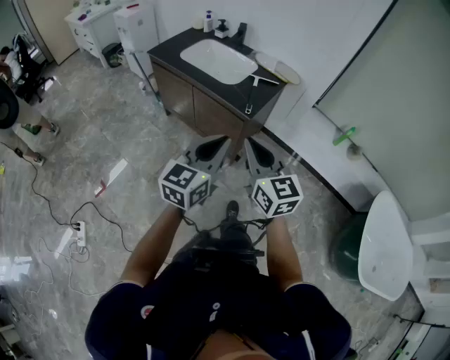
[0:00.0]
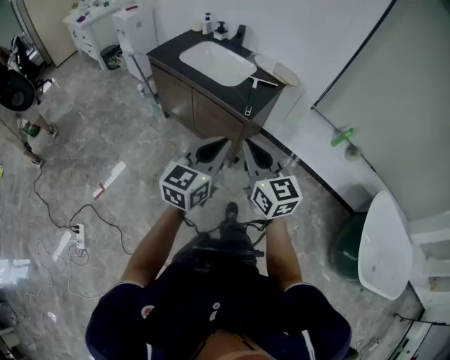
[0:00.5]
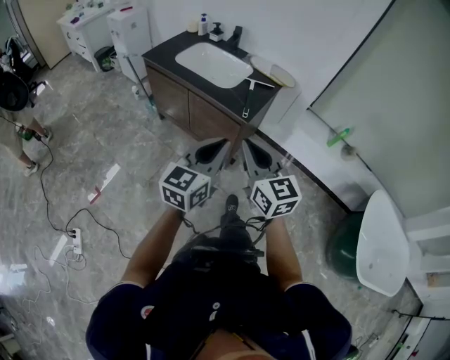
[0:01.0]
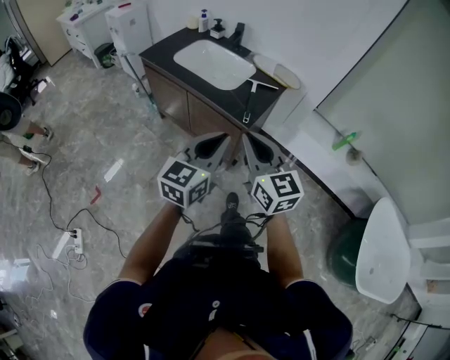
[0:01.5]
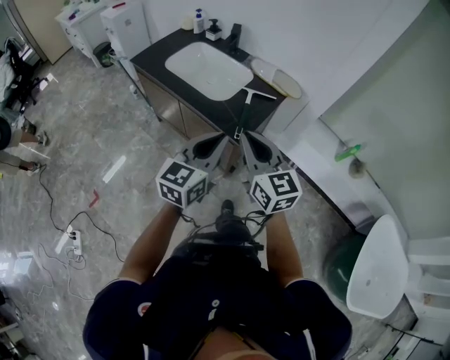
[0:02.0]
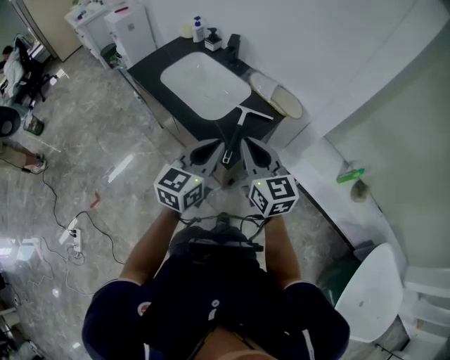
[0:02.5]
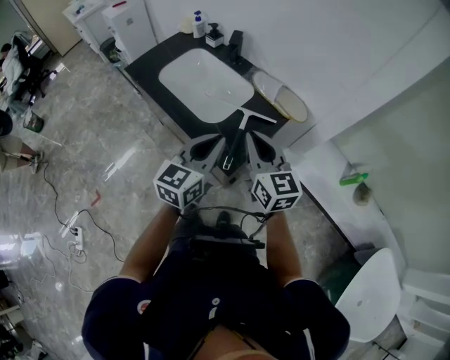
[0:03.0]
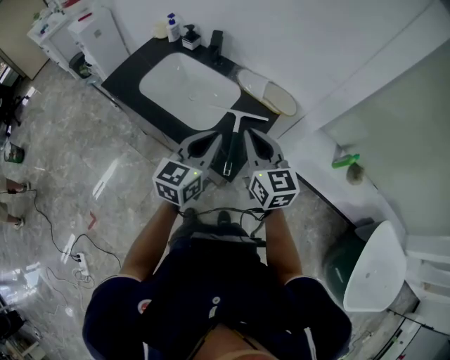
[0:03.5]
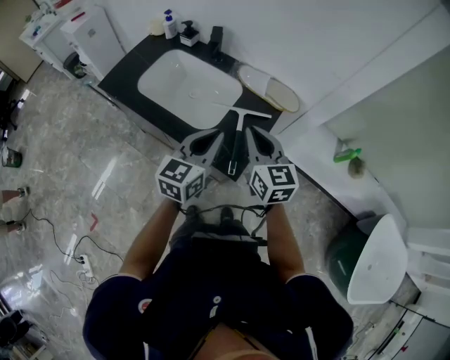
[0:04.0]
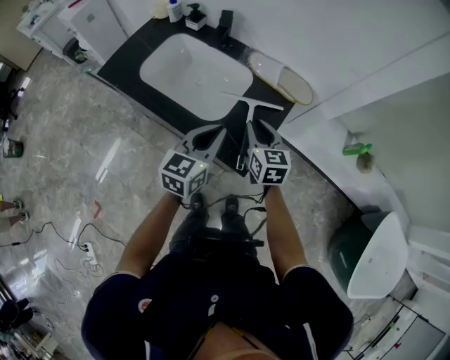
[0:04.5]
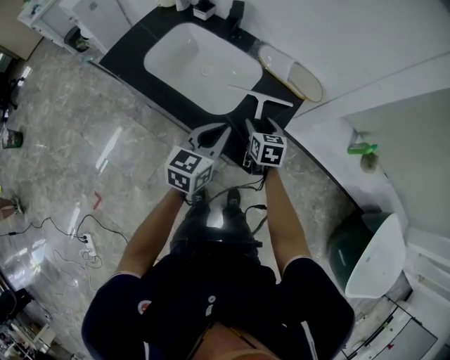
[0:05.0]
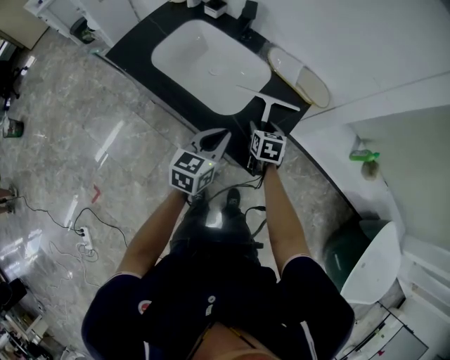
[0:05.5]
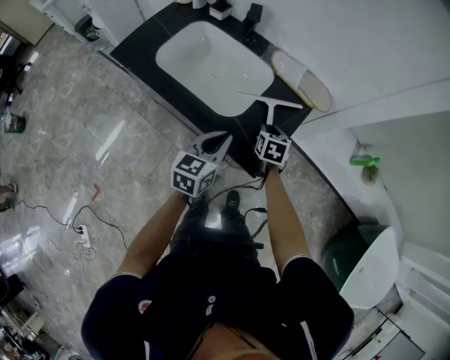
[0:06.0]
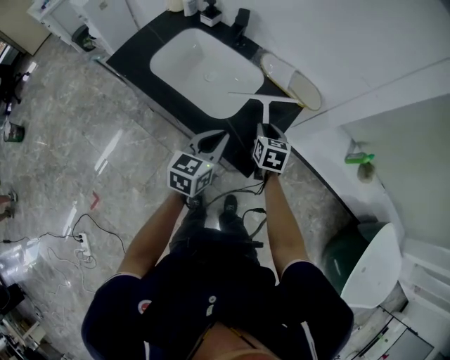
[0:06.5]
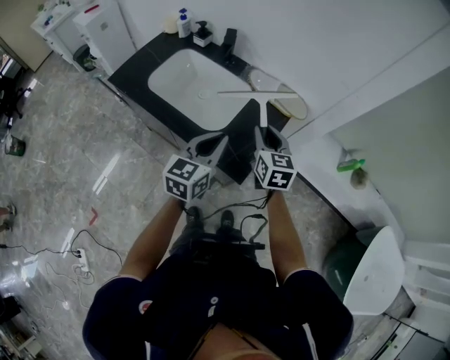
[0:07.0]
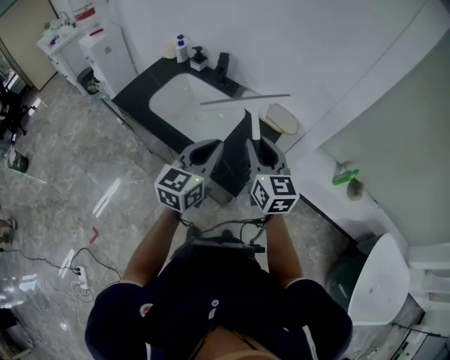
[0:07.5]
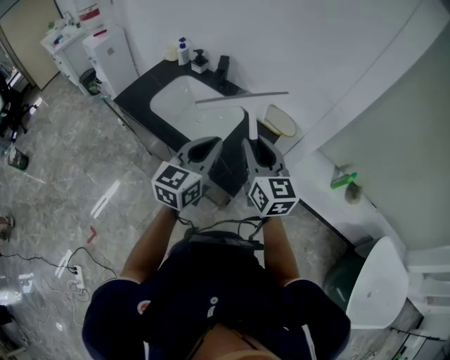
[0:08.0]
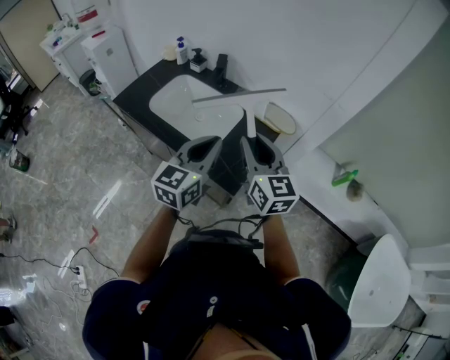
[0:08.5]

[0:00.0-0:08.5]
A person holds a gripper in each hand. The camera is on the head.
0:00.0 to 0:02.0: The two grippers go approximately 20 cm forward.
0:02.0 to 0:04.0: The grippers both shift forward by approximately 25 cm.
0:04.0 to 0:06.5: The right gripper is displaced downward by approximately 20 cm, swivels some 30 degrees, and opens up. The left gripper travels downward by about 10 cm.
0:06.5 to 0:08.5: The left gripper travels upward by some 15 cm. Meanwhile the right gripper heads upward, covering some 25 cm, and points its fingers about 40 degrees further upward.

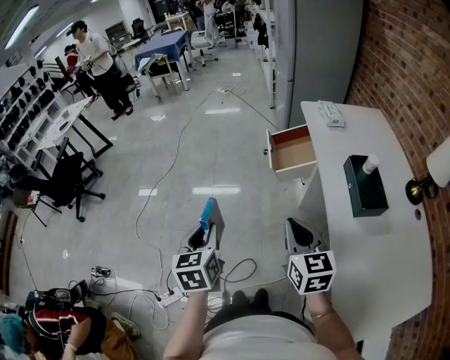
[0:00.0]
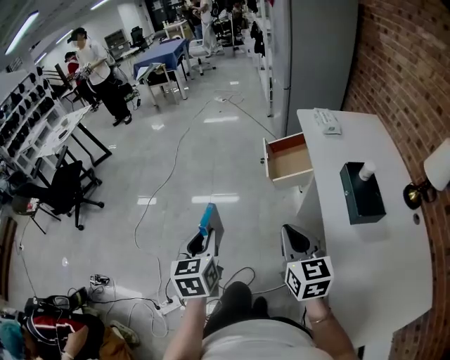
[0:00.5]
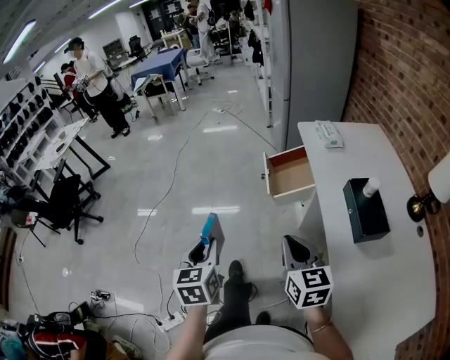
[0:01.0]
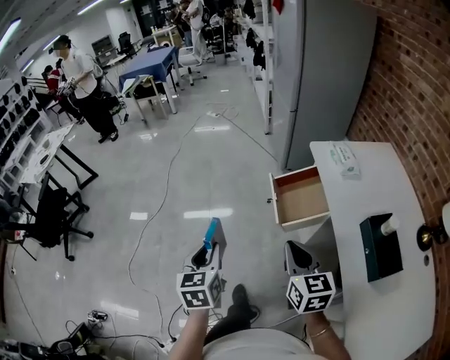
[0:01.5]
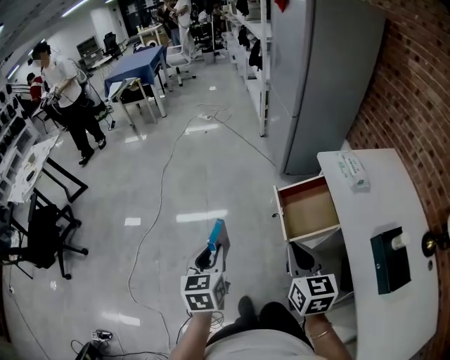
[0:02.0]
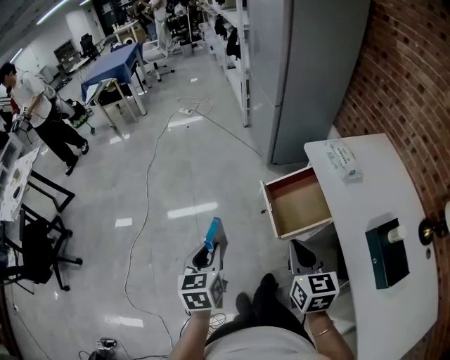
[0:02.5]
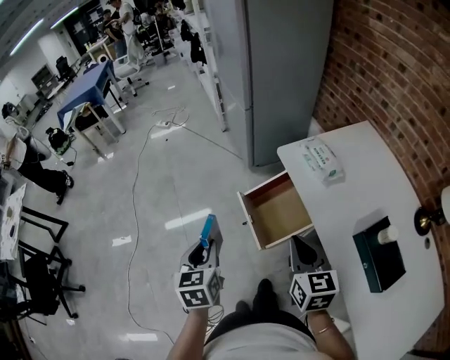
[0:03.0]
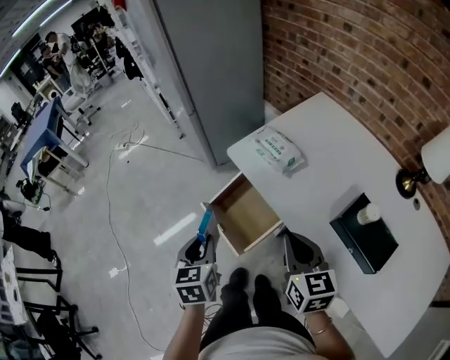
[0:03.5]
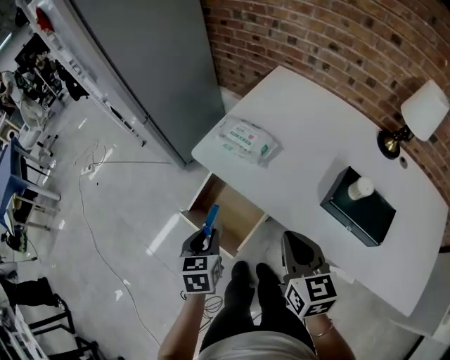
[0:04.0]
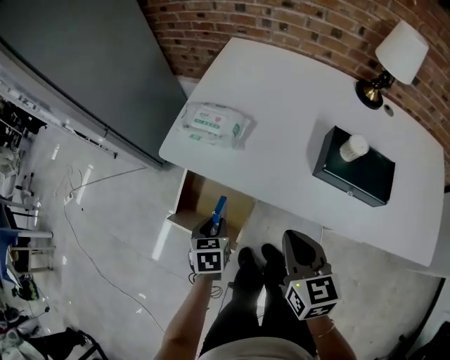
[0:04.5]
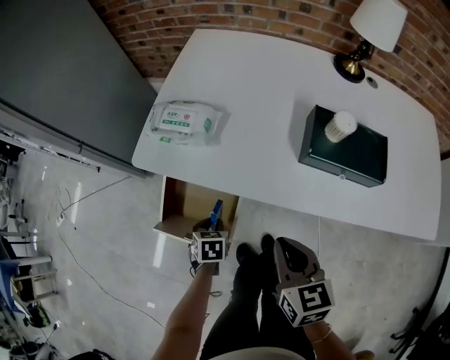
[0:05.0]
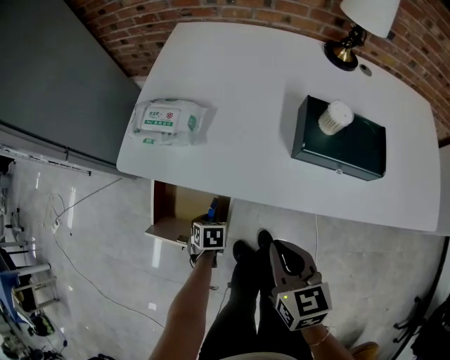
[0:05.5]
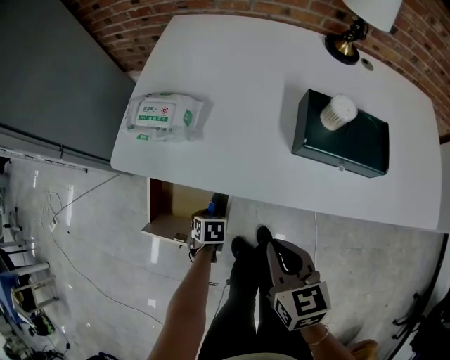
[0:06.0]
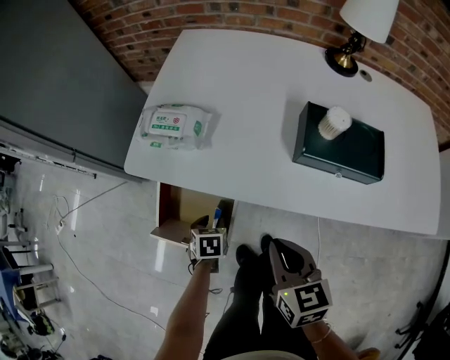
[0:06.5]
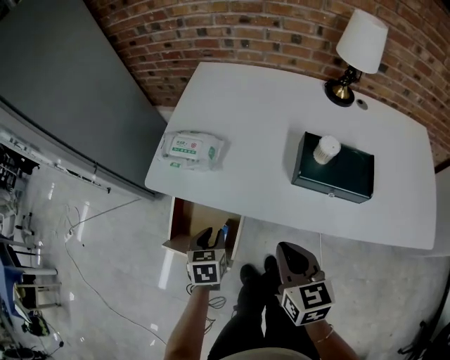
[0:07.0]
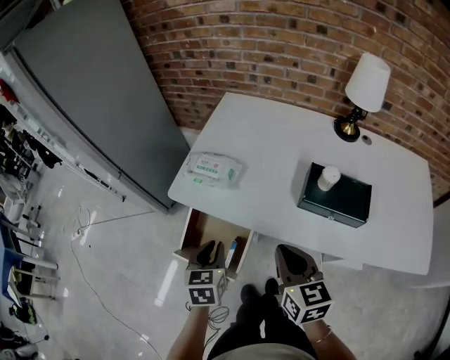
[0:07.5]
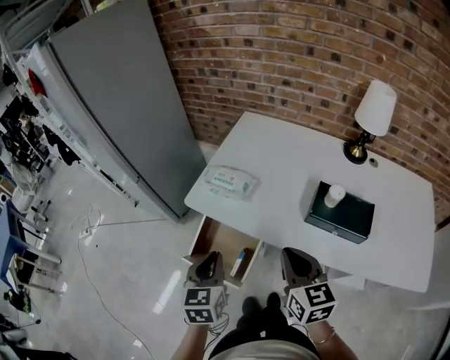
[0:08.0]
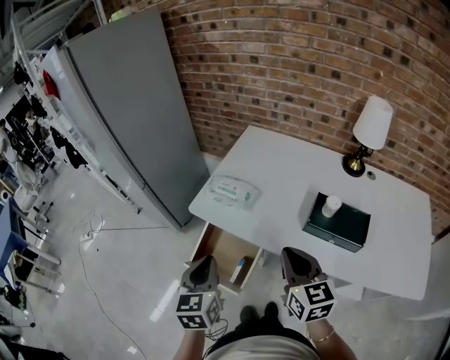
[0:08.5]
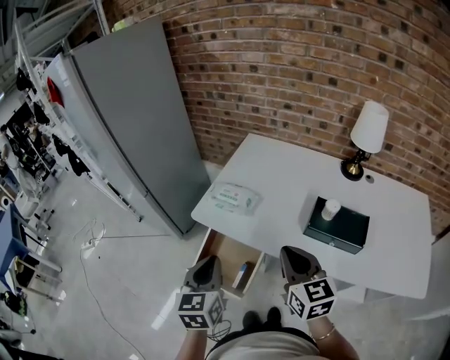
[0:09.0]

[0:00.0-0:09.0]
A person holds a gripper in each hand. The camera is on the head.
0:00.0 to 0:02.0: The grippers both shift forward by roughly 40 cm.
0:02.0 to 0:04.5: The right gripper moves approximately 30 cm, and rotates roughly 60 degrees; the left gripper shifts by some 50 cm, and swivels about 70 degrees.
0:04.5 to 0:07.0: The right gripper moves about 10 cm downward and comes back. Meanwhile the left gripper goes downward and returns, some 20 cm each way.
0:07.0 to 0:09.0: The right gripper is displaced upward by roughly 15 cm, and changes its angle by roughly 20 degrees; the left gripper moves upward, some 30 cm, points its fingers about 30 degrees further upward, and closes up.

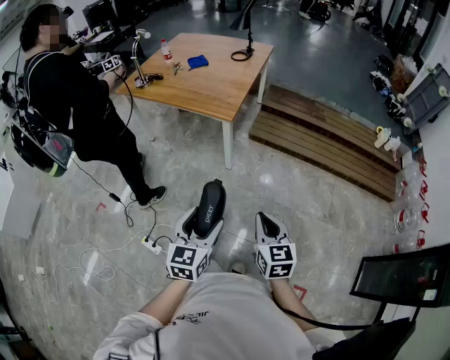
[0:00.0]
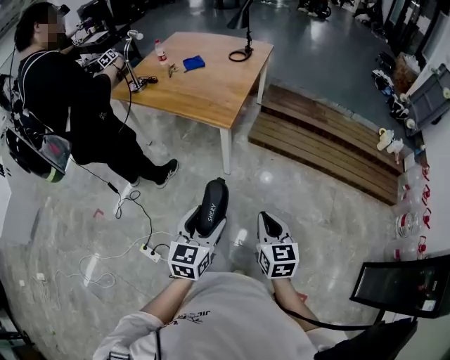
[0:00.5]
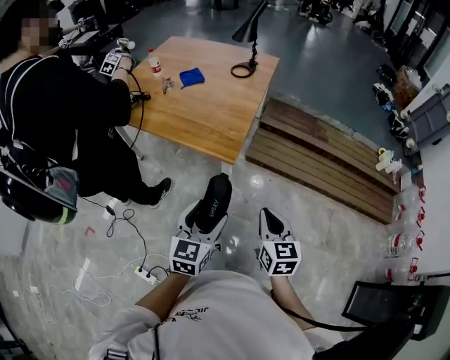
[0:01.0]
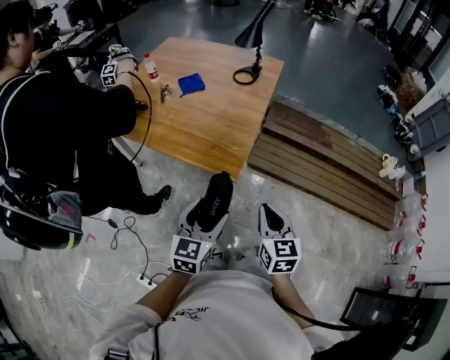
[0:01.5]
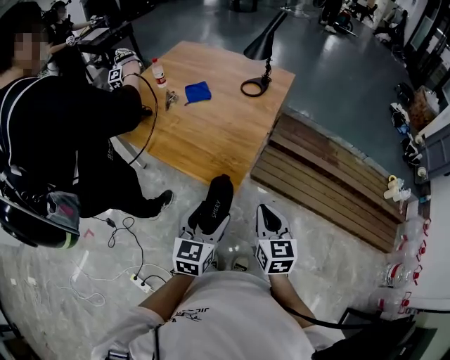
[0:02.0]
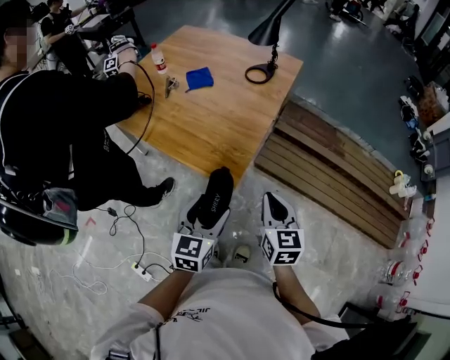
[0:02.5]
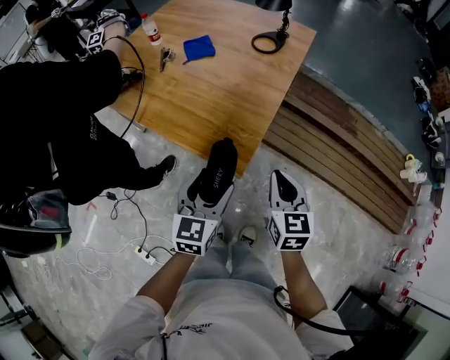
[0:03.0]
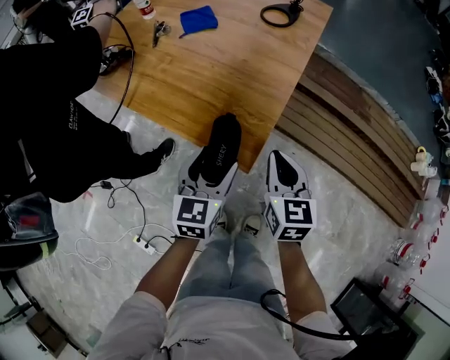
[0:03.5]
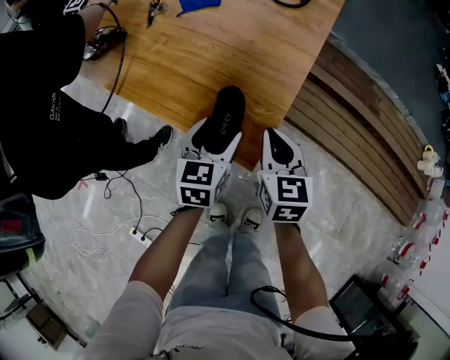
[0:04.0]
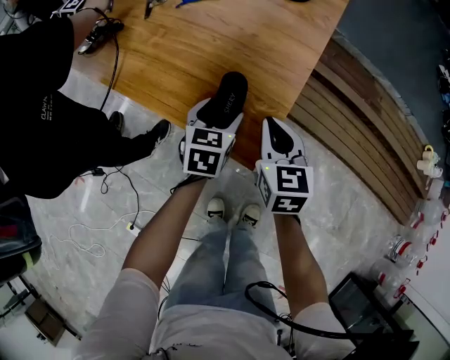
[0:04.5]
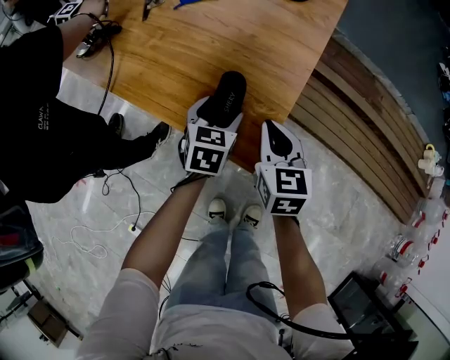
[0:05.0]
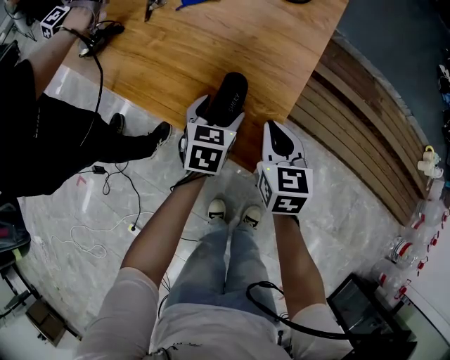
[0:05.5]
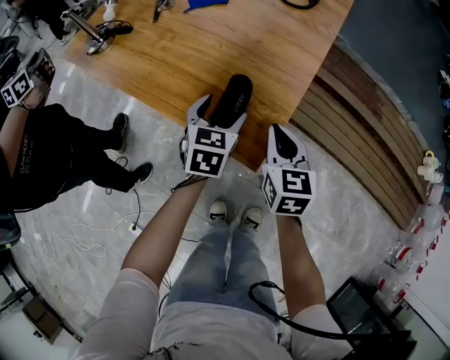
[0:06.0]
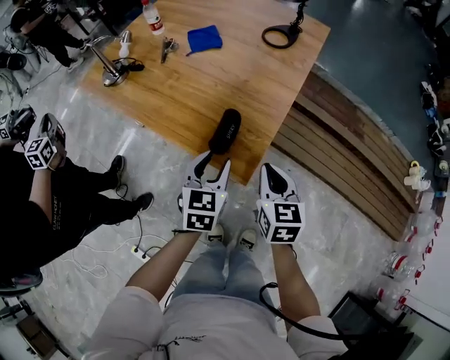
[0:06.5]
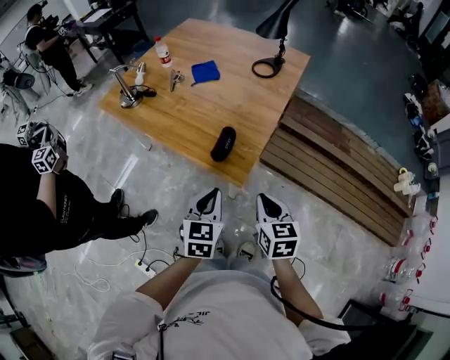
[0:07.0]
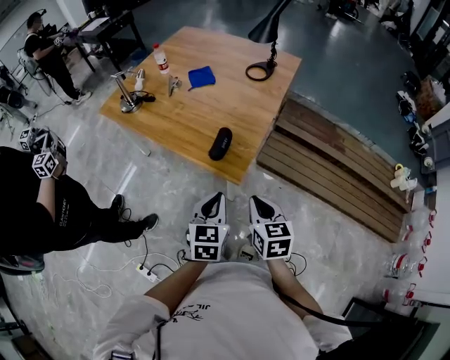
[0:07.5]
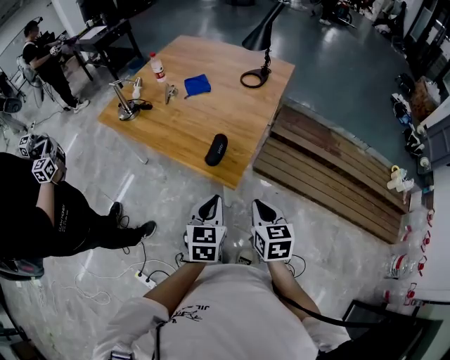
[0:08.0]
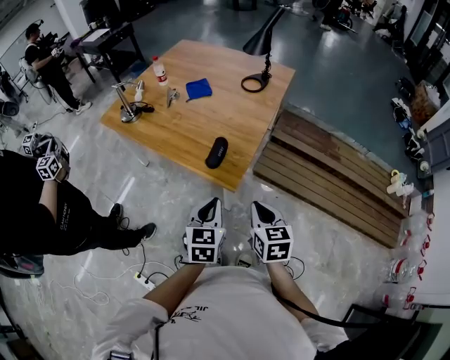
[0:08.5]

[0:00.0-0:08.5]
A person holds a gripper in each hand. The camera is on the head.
0:00.0 to 0:02.0: Both grippers are carried forward, approximately 50 cm.
0:02.0 to 0:04.0: The left gripper travels downward and forward by approximately 30 cm. The right gripper goes approximately 30 cm forward and downward.
0:04.0 to 0:06.5: The left gripper is displaced upward by roughly 10 cm, and closes its fingers. The right gripper heads upward and backward, covering some 10 cm.
0:06.5 to 0:08.5: The two grippers go roughly 20 cm backward and upward. The left gripper closes its fingers.

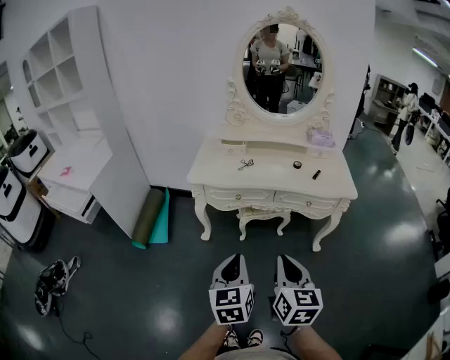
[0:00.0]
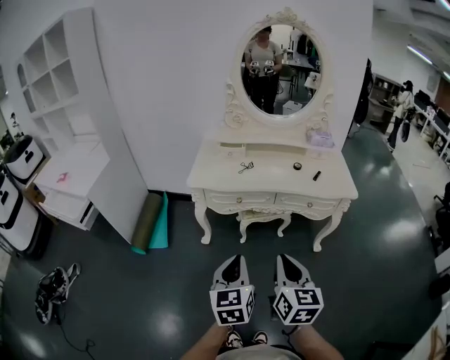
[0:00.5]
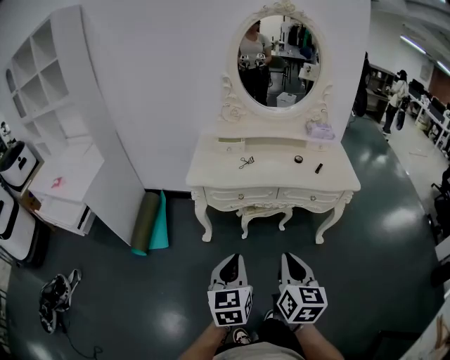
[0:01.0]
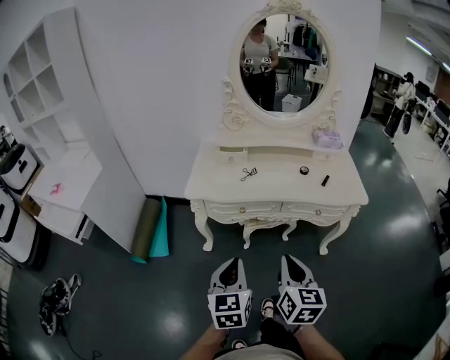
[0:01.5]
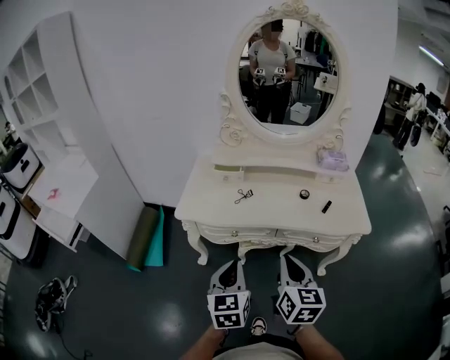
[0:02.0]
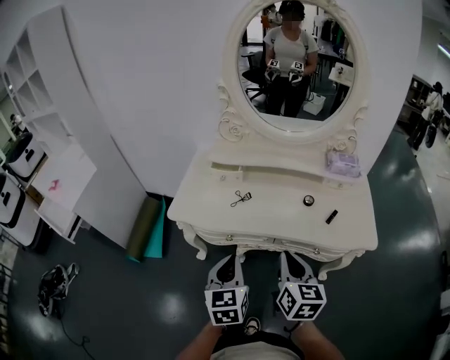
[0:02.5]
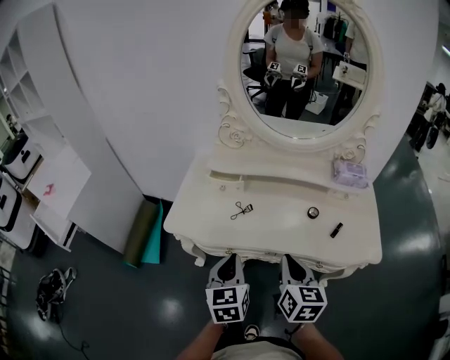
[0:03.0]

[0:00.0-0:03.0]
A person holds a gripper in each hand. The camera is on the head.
0:00.0 to 0:01.5: The two grippers go approximately 10 cm forward.
0:01.5 to 0:03.0: Both grippers move forward, some 25 cm.
